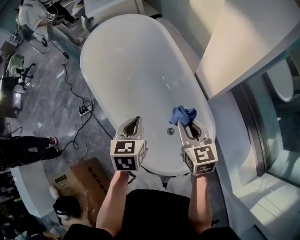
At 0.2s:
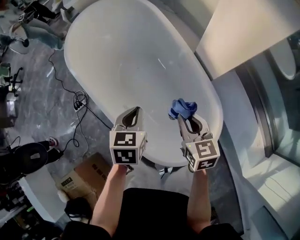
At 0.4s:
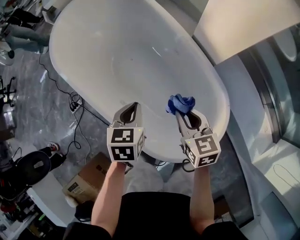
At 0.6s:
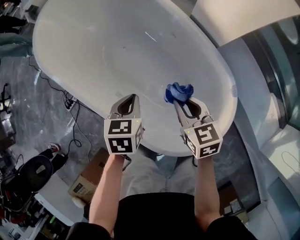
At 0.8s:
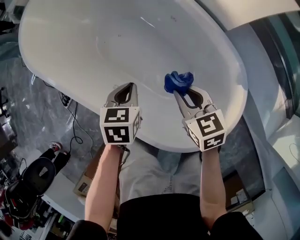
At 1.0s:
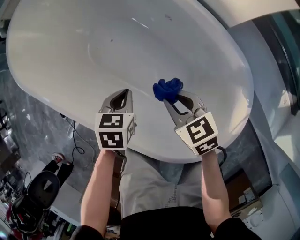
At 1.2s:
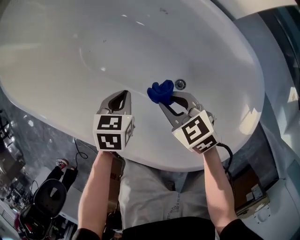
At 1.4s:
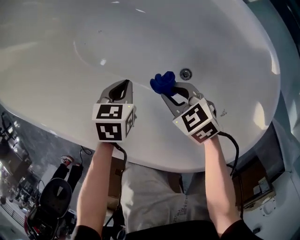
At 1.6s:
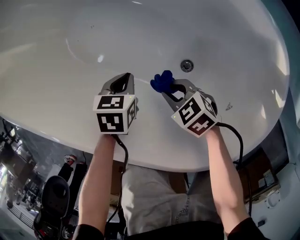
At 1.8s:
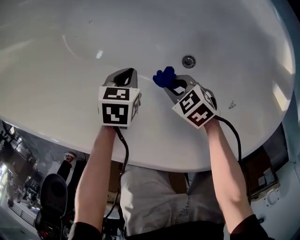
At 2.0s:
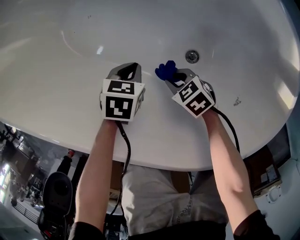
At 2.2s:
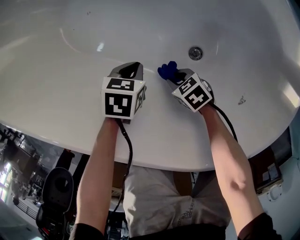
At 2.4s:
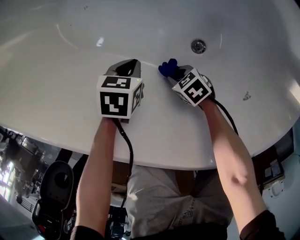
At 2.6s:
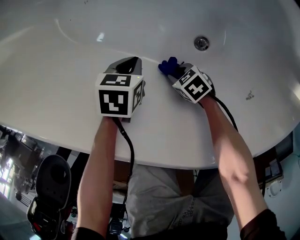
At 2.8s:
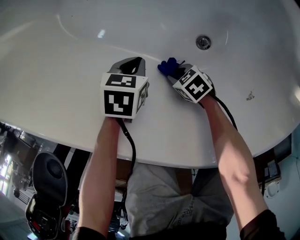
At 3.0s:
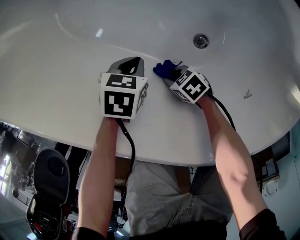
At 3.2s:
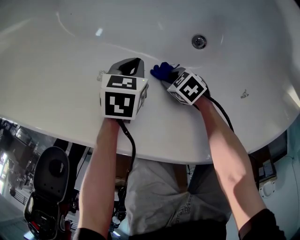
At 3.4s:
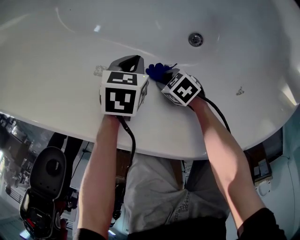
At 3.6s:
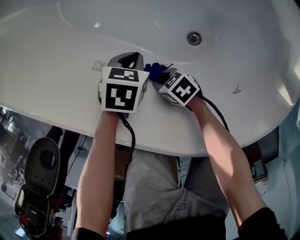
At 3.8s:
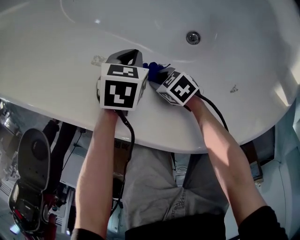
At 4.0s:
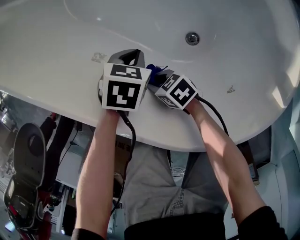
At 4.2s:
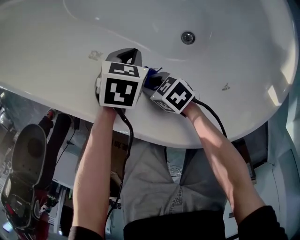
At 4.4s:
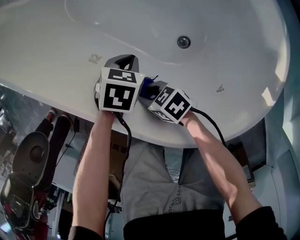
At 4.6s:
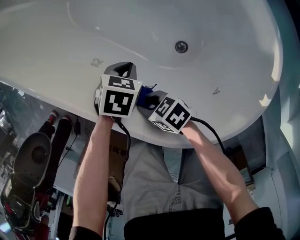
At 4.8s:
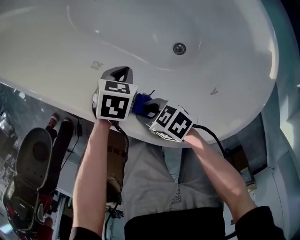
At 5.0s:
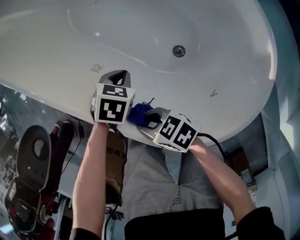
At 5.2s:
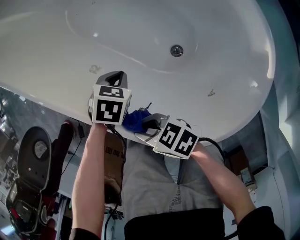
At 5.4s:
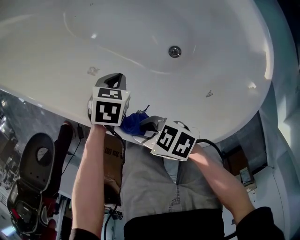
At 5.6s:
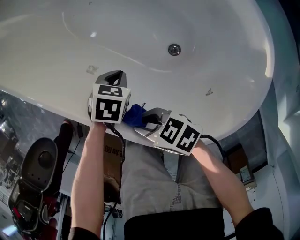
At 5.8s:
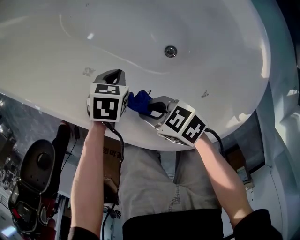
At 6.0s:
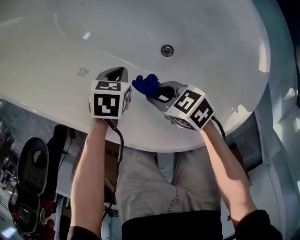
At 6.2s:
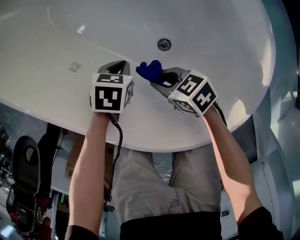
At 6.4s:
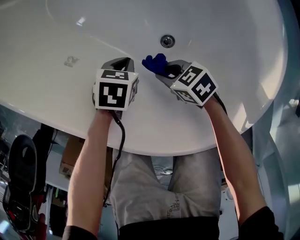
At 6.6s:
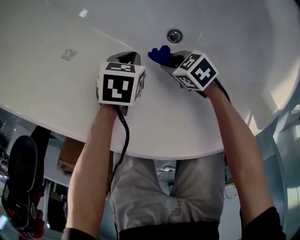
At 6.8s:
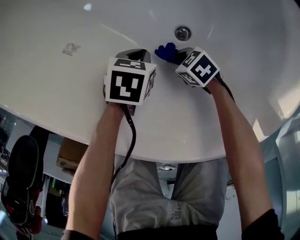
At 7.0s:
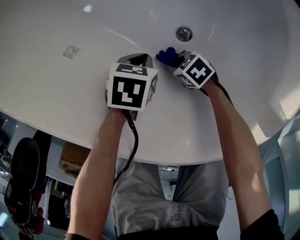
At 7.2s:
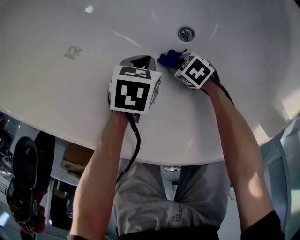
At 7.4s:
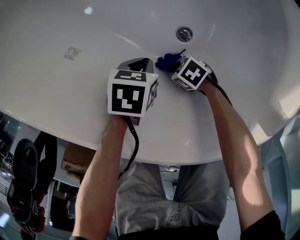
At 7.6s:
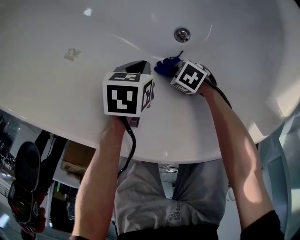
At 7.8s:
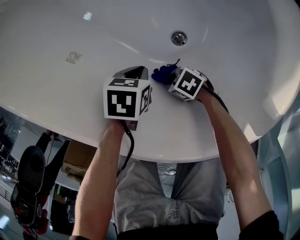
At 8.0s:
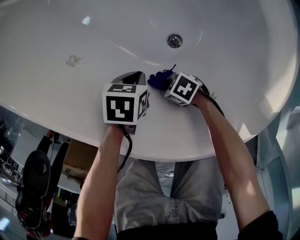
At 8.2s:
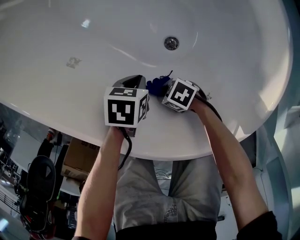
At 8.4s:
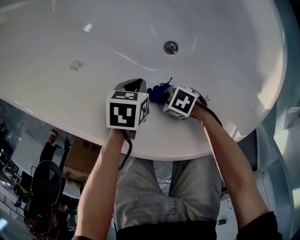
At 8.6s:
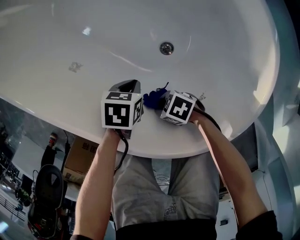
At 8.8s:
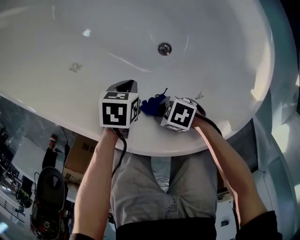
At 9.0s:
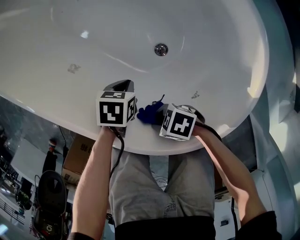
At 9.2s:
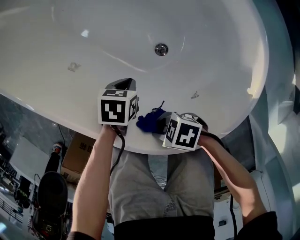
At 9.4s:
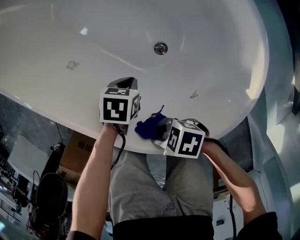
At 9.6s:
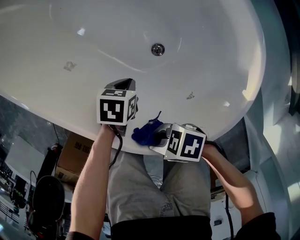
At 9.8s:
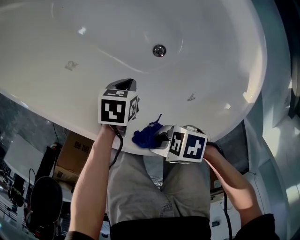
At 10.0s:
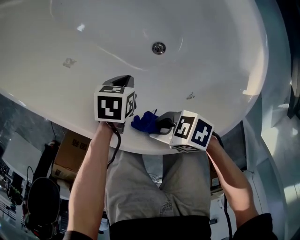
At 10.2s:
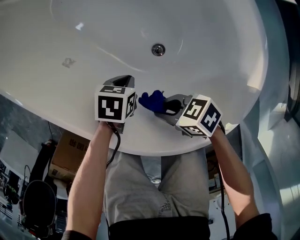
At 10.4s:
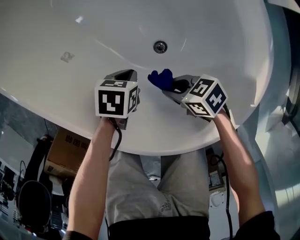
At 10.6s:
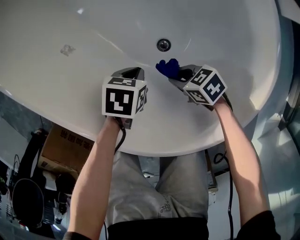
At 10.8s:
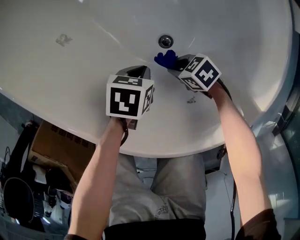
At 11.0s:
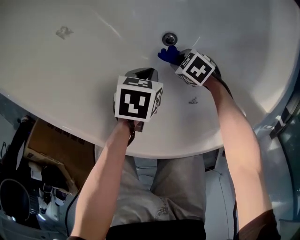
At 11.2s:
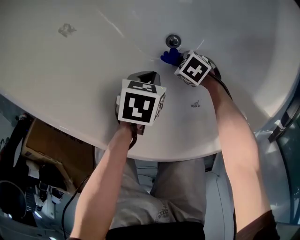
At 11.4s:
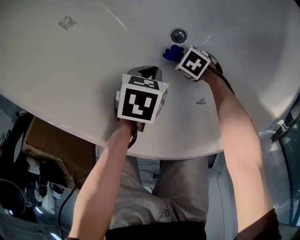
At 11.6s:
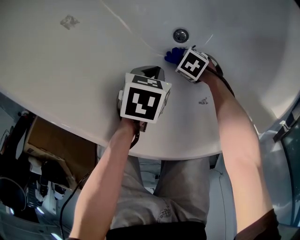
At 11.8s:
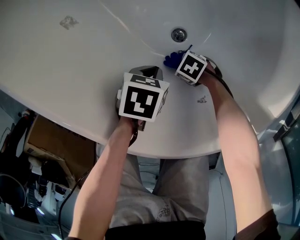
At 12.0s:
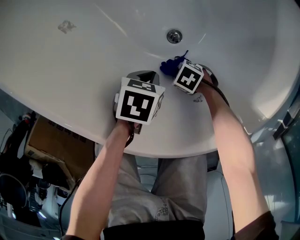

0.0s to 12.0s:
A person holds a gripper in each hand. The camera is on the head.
0.0s to 1.6s: Both grippers travel together downward, some 50 cm. The left gripper turns by roughly 50 degrees. Meanwhile the right gripper turns by roughly 30 degrees.
1.6s to 3.0s: The right gripper goes approximately 15 cm downward, and turns by some 30 degrees. Meanwhile the left gripper heads downward, covering about 5 cm.
3.0s to 4.4s: The left gripper is displaced upward by approximately 5 cm; the right gripper is displaced upward by about 15 cm.
4.4s to 6.0s: The right gripper reaches approximately 10 cm upward, then returns; the left gripper shifts some 5 cm downward.
6.0s to 7.6s: The left gripper ends up about 25 cm from where it was. The right gripper shifts about 30 cm downward, and changes its angle by roughly 30 degrees.
7.6s to 9.0s: The right gripper moves upward, about 20 cm; the left gripper heads upward, covering roughly 5 cm.
9.0s to 10.4s: The right gripper moves roughly 10 cm upward and comes back.
10.4s to 12.0s: The right gripper is displaced downward by about 15 cm, and turns by approximately 40 degrees. Meanwhile the left gripper moves some 5 cm.

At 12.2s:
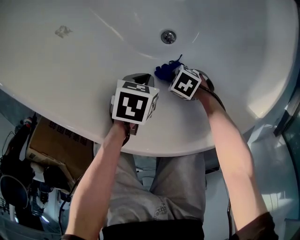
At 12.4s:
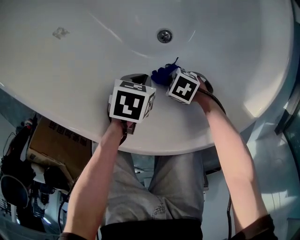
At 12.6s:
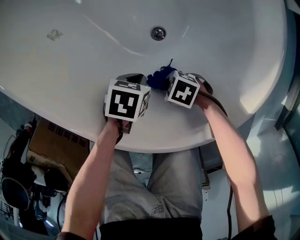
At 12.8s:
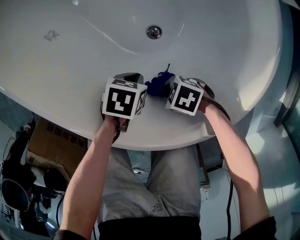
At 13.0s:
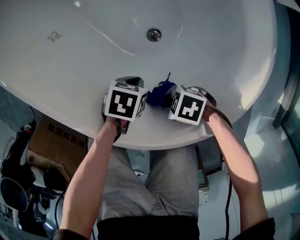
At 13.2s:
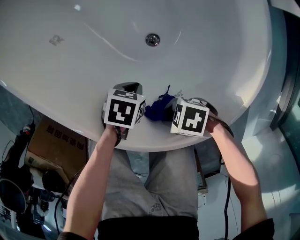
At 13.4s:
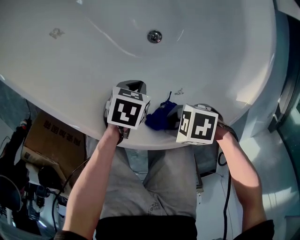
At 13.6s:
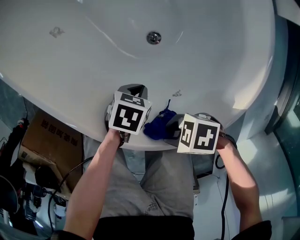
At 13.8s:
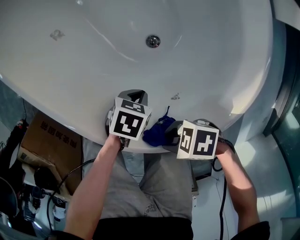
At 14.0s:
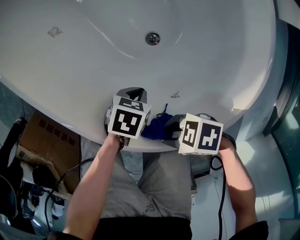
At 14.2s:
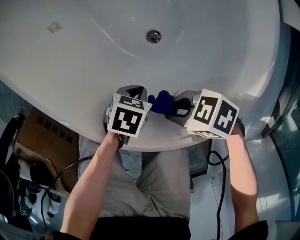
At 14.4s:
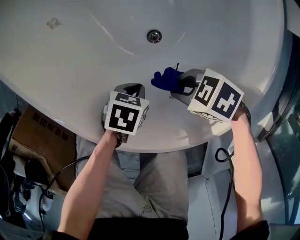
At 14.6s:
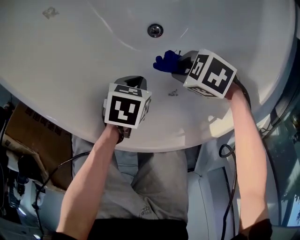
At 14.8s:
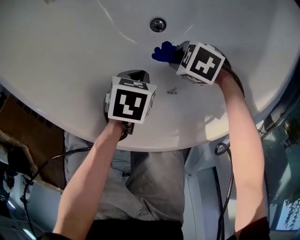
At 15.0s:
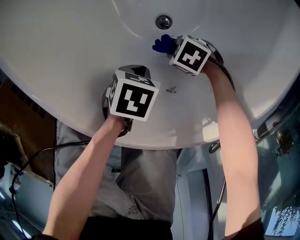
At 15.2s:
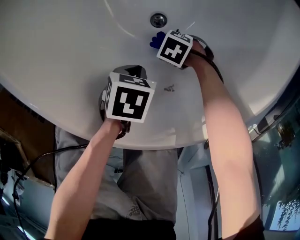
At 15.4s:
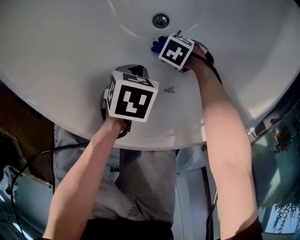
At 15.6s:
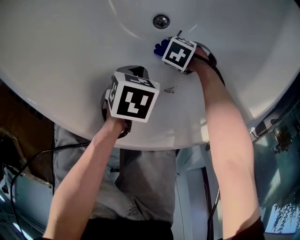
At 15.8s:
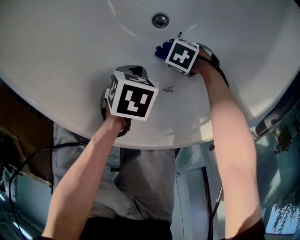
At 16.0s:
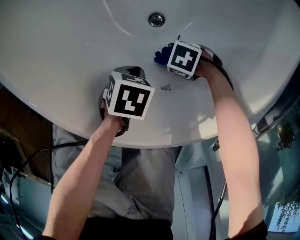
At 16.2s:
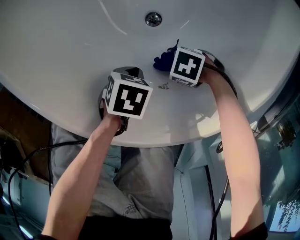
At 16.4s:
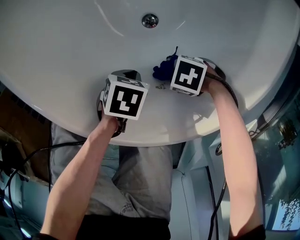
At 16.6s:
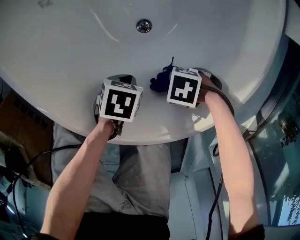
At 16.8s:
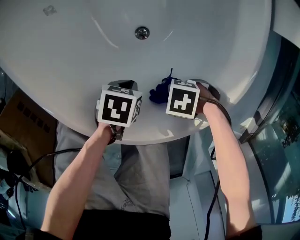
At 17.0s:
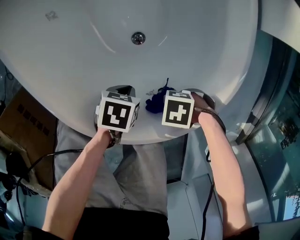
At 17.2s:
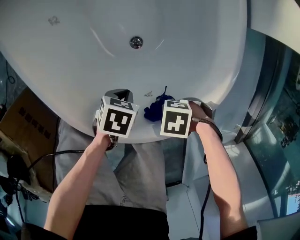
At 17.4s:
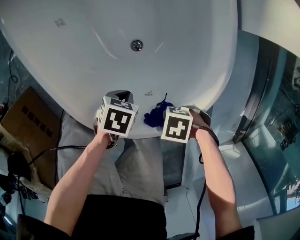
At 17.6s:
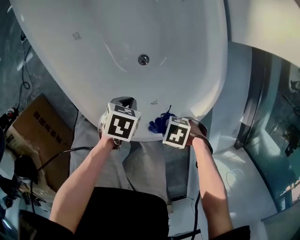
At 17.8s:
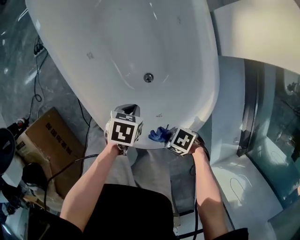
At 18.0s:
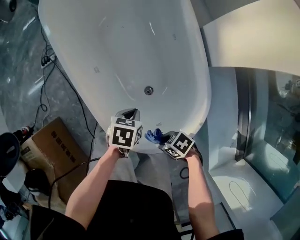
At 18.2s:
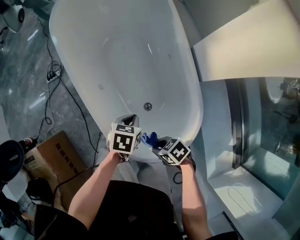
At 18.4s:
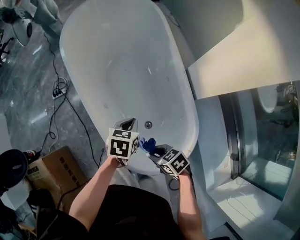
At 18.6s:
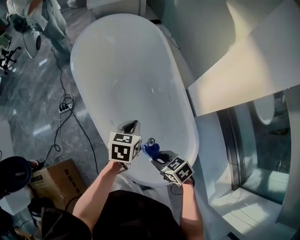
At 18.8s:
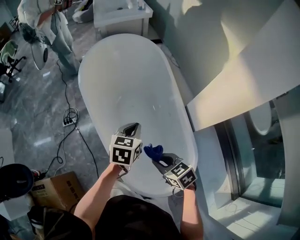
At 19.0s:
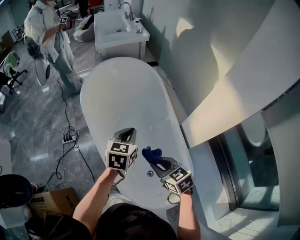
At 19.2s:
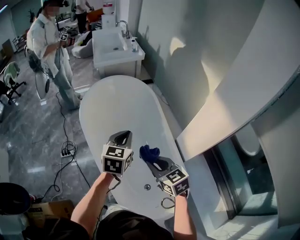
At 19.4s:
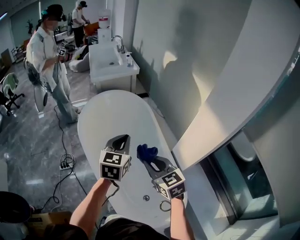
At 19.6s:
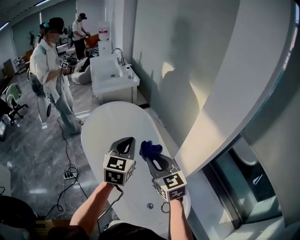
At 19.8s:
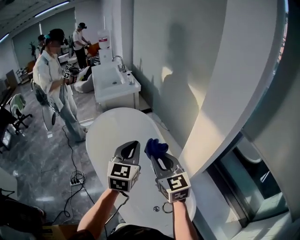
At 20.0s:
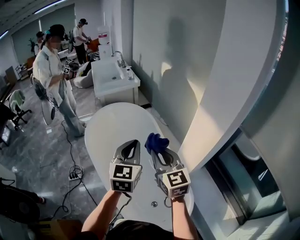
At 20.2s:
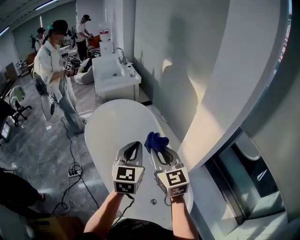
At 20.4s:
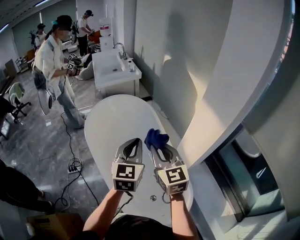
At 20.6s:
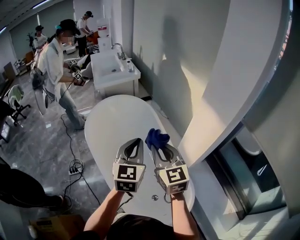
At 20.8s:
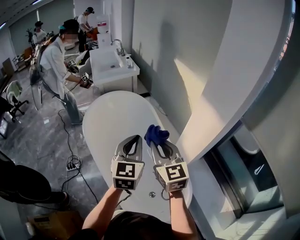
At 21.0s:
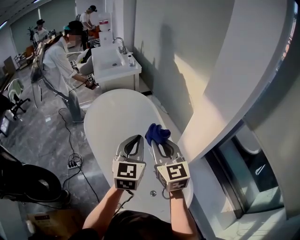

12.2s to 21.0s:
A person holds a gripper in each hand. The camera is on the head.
12.2s to 13.6s: The left gripper moves approximately 5 cm, while the right gripper shifts some 25 cm upward, and changes its angle by some 30 degrees.
13.6s to 15.2s: The right gripper moves downward, some 30 cm, and tilts its fingers roughly 40 degrees downward.
15.2s to 16.6s: The right gripper moves upward and forward, approximately 20 cm.
16.6s to 18.0s: The two grippers go some 25 cm upward. The left gripper swivels approximately 20 degrees. The right gripper changes its angle by approximately 40 degrees.
18.0s to 19.6s: Both grippers move upward, about 50 cm. The left gripper angles its fingers upward, by about 50 degrees. The right gripper turns by approximately 90 degrees.
19.6s to 21.0s: The left gripper travels backward by about 5 cm.

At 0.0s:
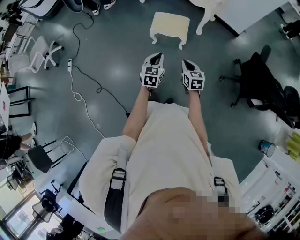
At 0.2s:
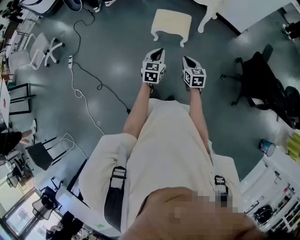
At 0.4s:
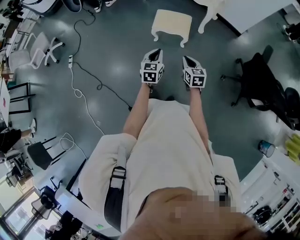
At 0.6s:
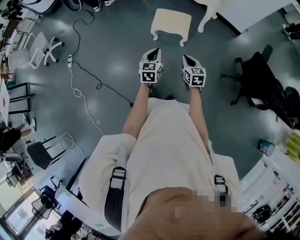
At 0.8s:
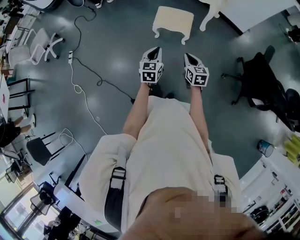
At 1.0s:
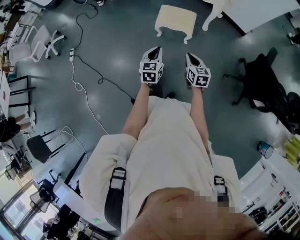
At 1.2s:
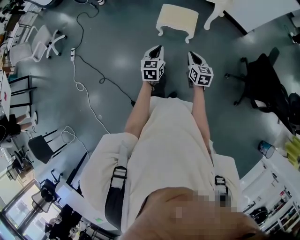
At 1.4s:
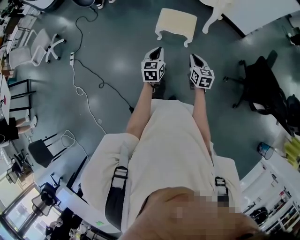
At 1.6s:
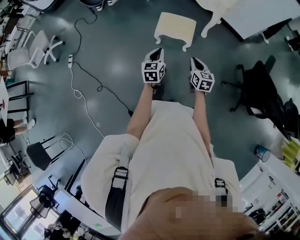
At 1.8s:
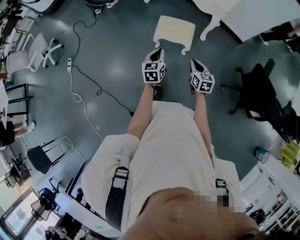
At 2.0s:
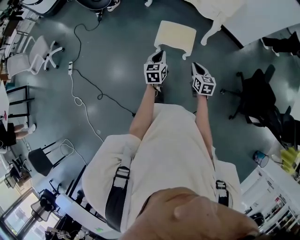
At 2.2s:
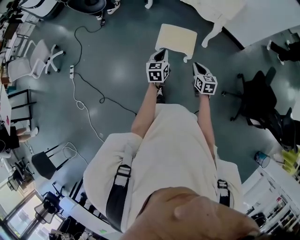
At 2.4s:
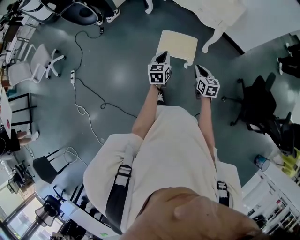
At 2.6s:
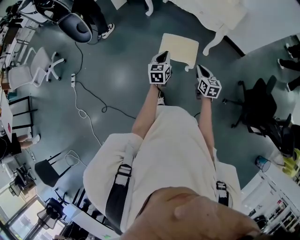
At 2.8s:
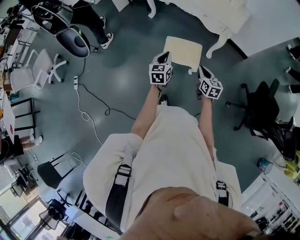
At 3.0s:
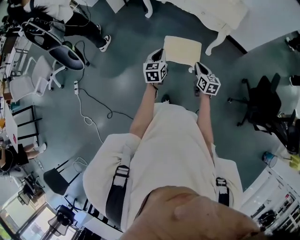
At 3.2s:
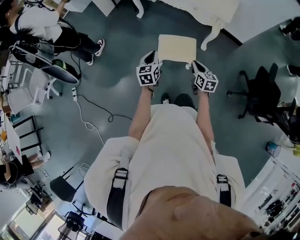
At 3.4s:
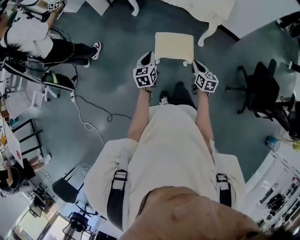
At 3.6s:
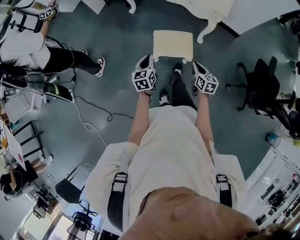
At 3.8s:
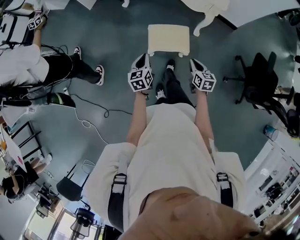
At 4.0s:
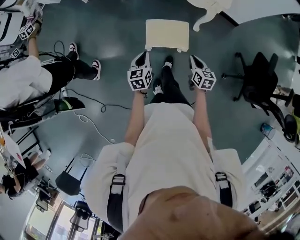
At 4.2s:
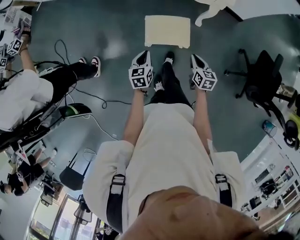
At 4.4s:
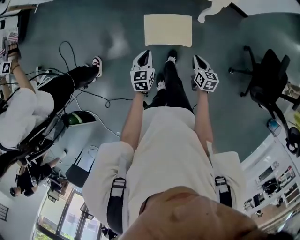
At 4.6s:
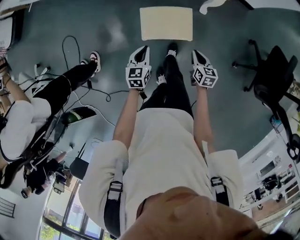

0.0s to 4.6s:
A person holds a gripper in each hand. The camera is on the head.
0.0s to 1.6s: The two grippers go roughly 10 cm forward.
1.6s to 3.0s: Both grippers travel together forward, approximately 25 cm.
3.0s to 4.6s: Both grippers move downward, to the right and forward, roughly 20 cm.
